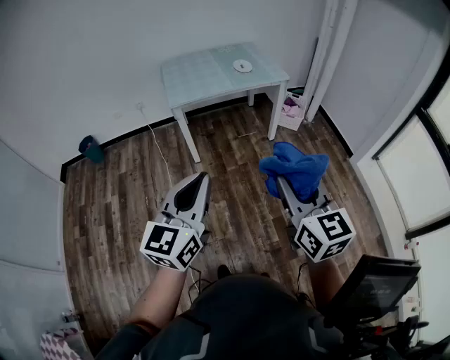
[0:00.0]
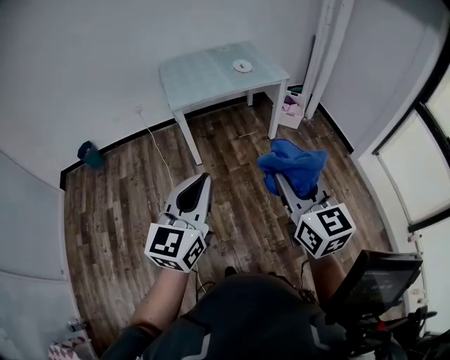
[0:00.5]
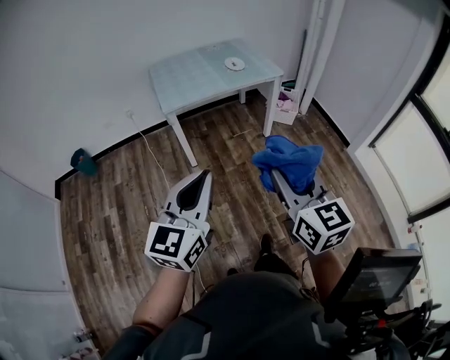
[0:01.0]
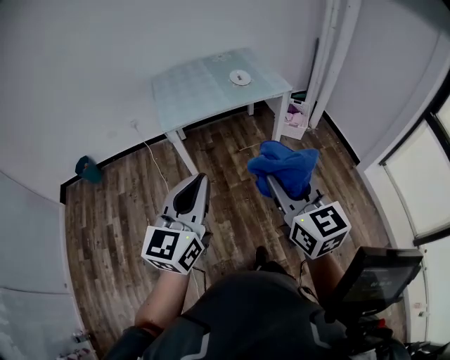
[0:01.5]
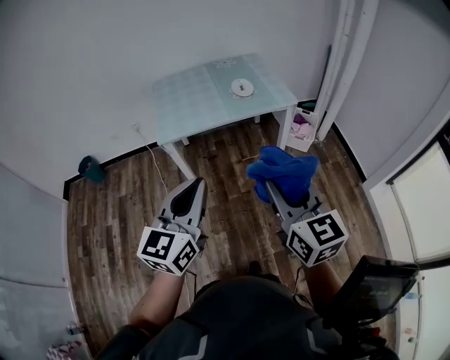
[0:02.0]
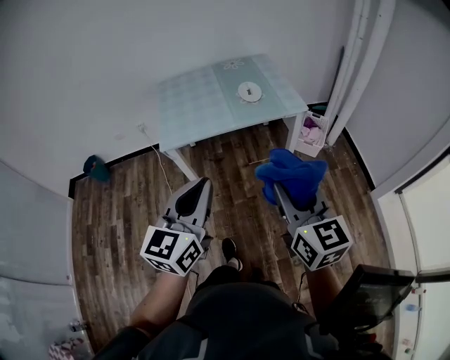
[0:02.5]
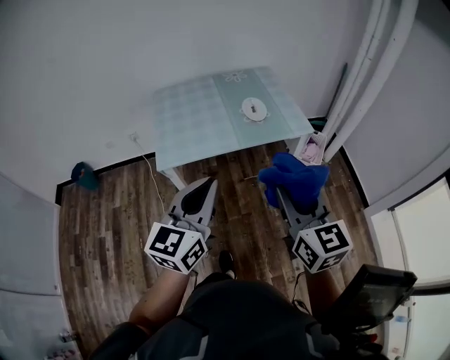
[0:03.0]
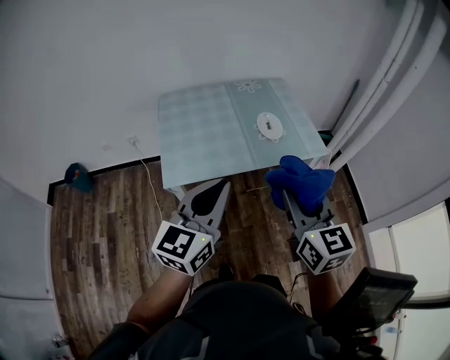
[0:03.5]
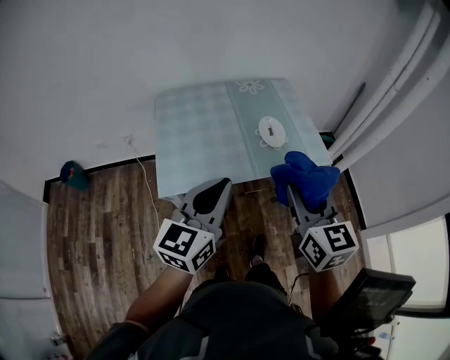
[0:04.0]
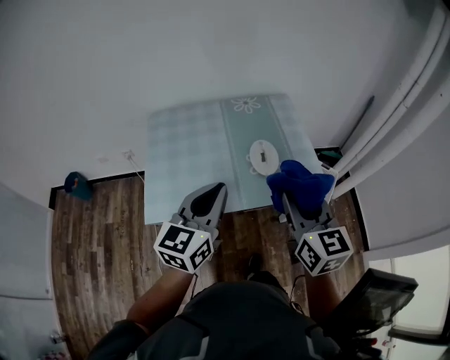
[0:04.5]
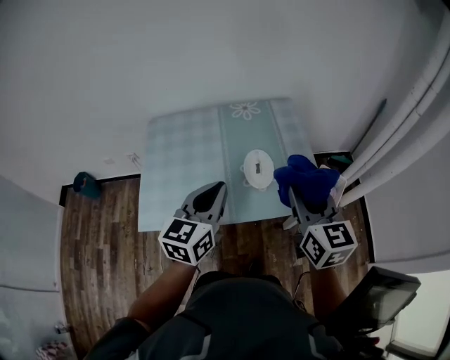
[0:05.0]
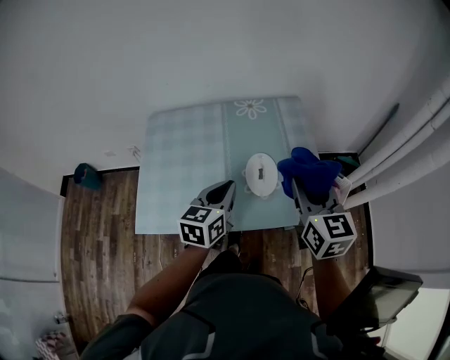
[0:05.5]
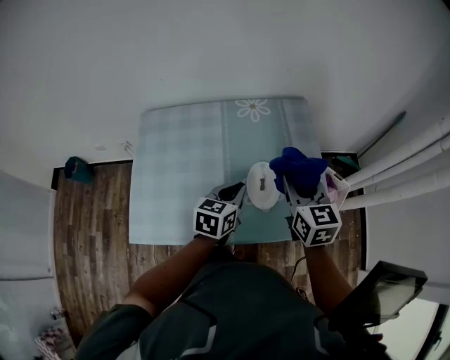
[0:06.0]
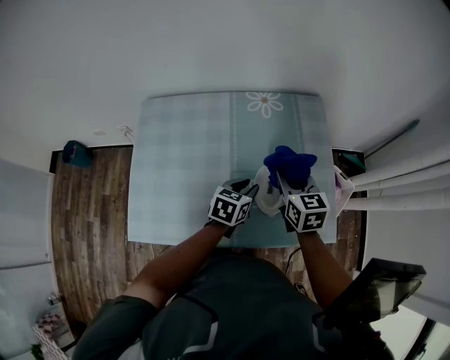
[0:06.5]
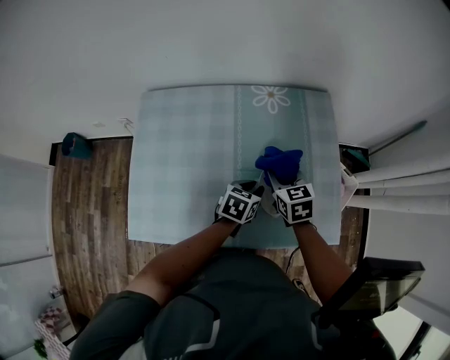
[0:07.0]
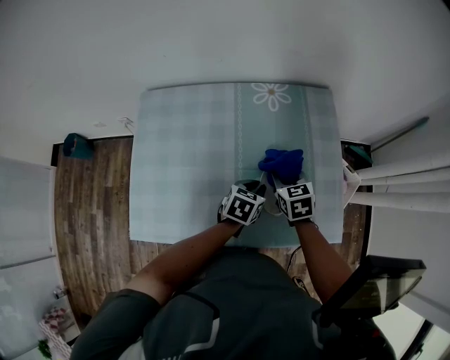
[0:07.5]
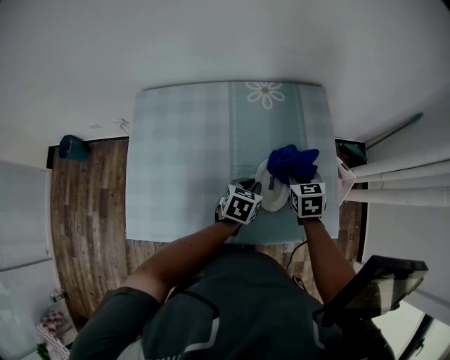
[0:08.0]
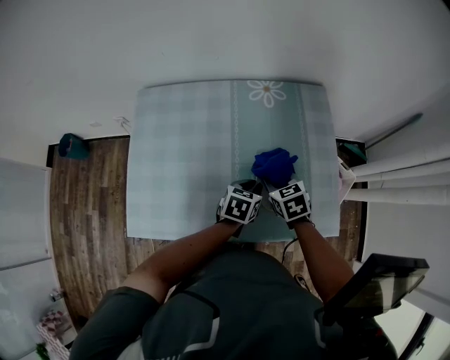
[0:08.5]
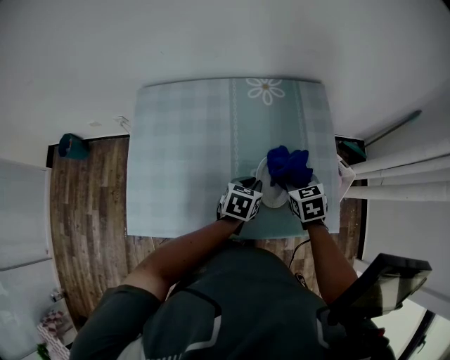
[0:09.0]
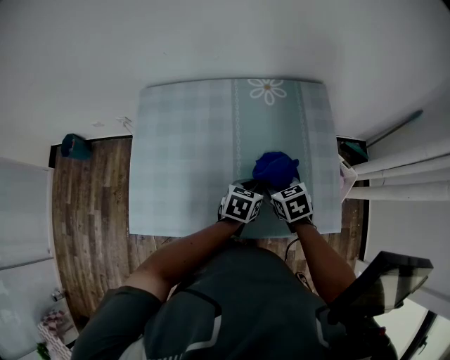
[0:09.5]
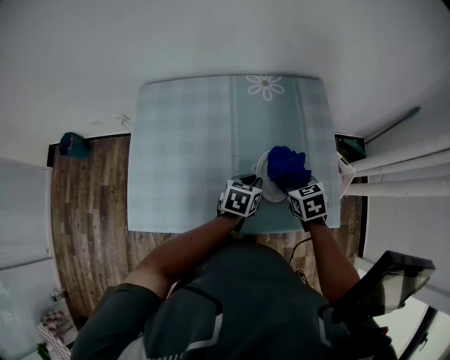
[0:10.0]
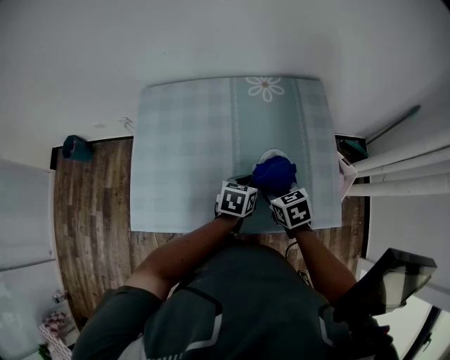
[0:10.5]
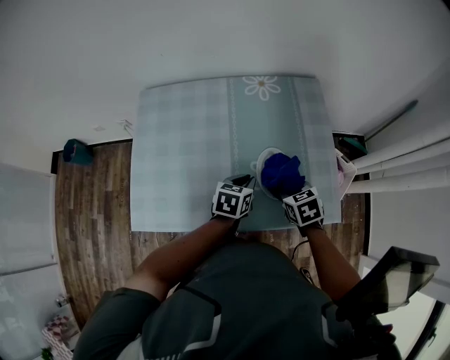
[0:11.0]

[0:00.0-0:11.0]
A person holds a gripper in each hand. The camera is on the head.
0:00.0 to 0:02.0: The two grippers go roughly 25 cm forward.
0:02.0 to 0:03.5: Both grippers travel together forward, roughly 30 cm.
0:03.5 to 0:05.5: The left gripper moves forward and downward, some 40 cm, and changes its angle by about 30 degrees; the right gripper is displaced forward by about 35 cm.
0:05.5 to 0:07.5: The right gripper goes approximately 30 cm downward, forward and to the left, and angles its fingers downward, by some 30 degrees; the left gripper is displaced downward and forward by some 25 cm, and changes its angle by some 30 degrees.
0:07.5 to 0:09.0: The right gripper moves left and right over about 10 cm, changing direction 2 times.
0:09.0 to 0:11.0: The right gripper moves left and right over approximately 5 cm, changing direction 3 times.

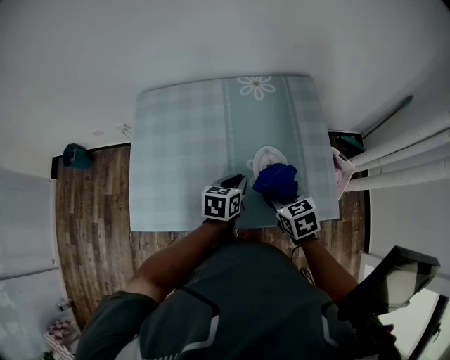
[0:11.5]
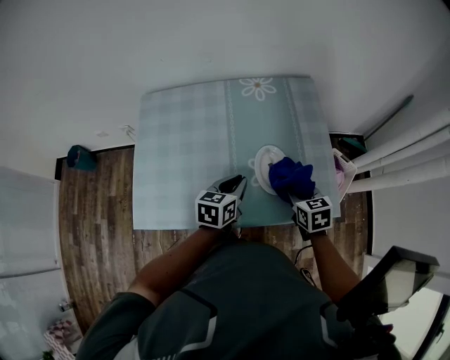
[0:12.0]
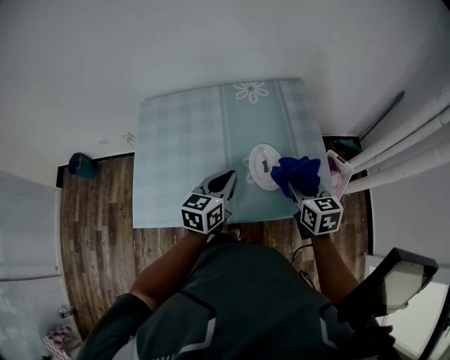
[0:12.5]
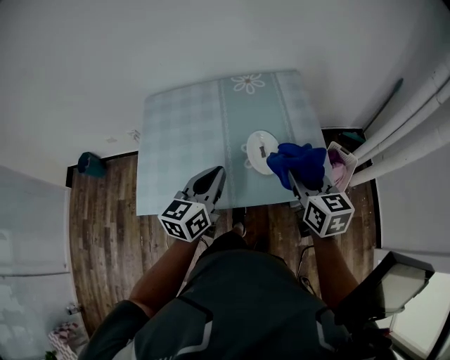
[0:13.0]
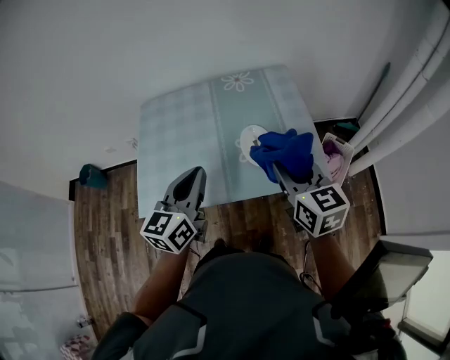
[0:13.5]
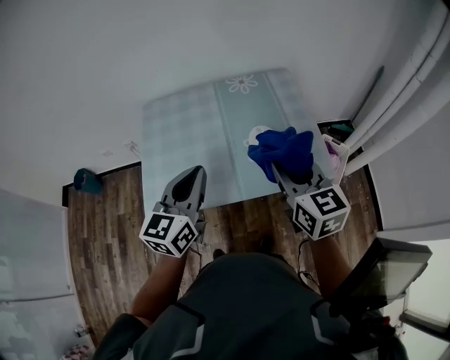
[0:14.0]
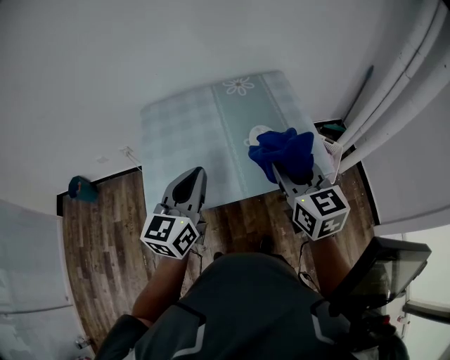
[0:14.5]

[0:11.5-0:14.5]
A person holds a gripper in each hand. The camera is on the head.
0:11.5 to 0:13.0: The left gripper heads upward and backward, covering some 20 cm, and changes its angle by roughly 30 degrees. Meanwhile the right gripper moves upward and to the right, about 15 cm, and swivels some 30 degrees.
0:13.0 to 0:14.5: The two grippers go roughly 15 cm to the left, upward and backward.

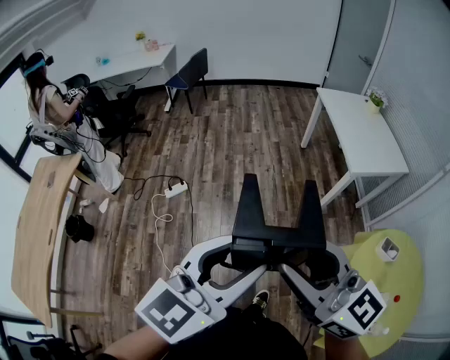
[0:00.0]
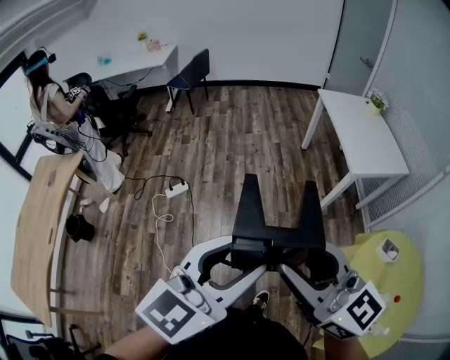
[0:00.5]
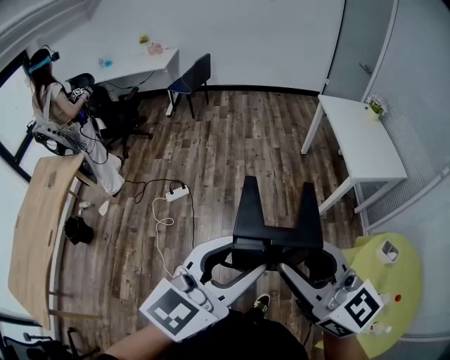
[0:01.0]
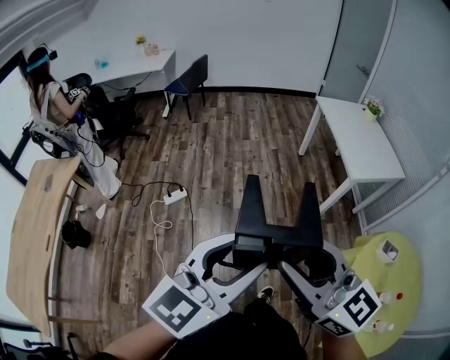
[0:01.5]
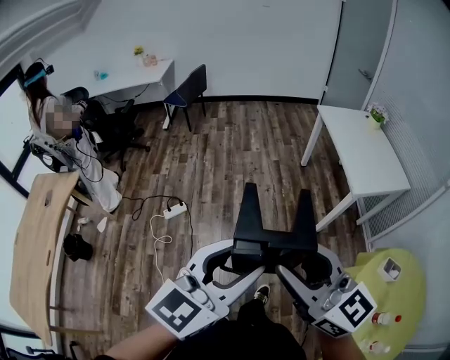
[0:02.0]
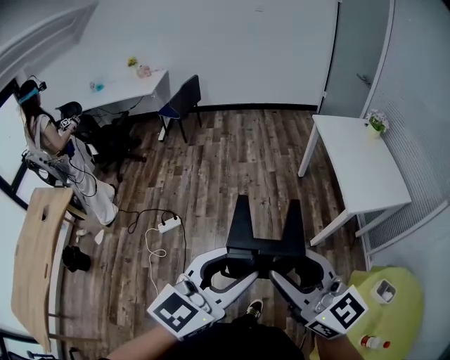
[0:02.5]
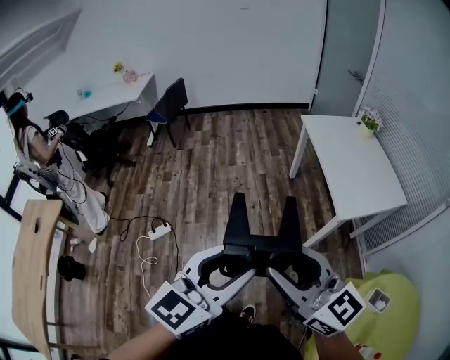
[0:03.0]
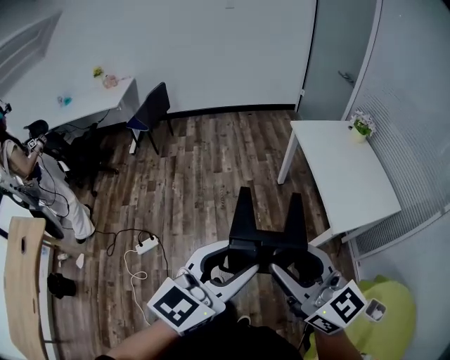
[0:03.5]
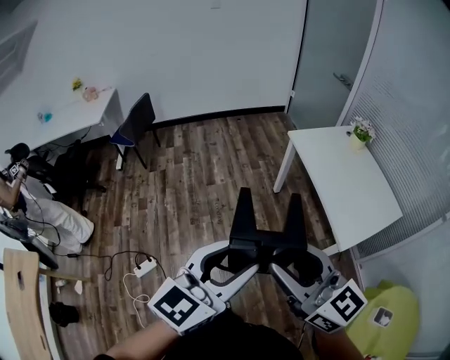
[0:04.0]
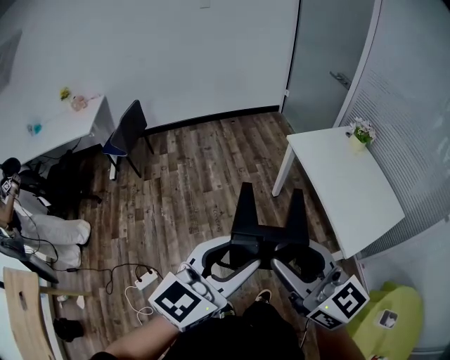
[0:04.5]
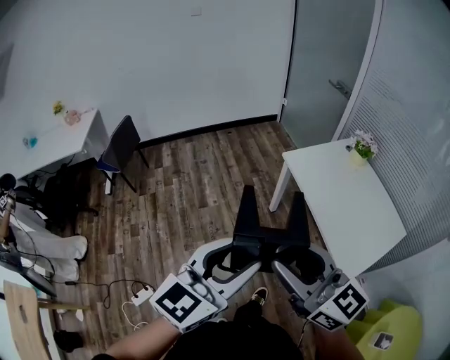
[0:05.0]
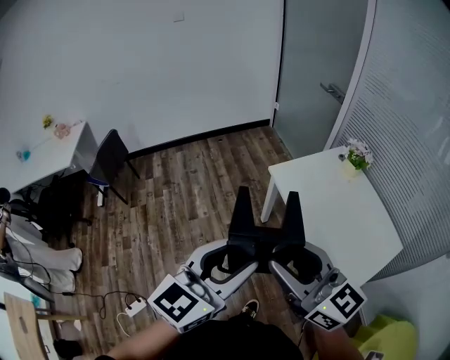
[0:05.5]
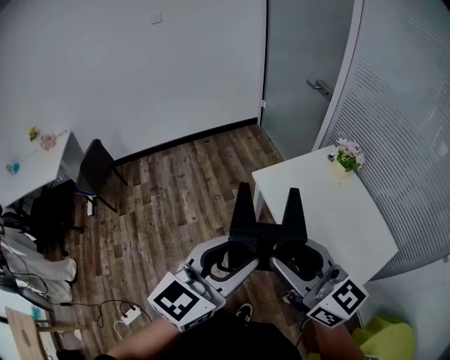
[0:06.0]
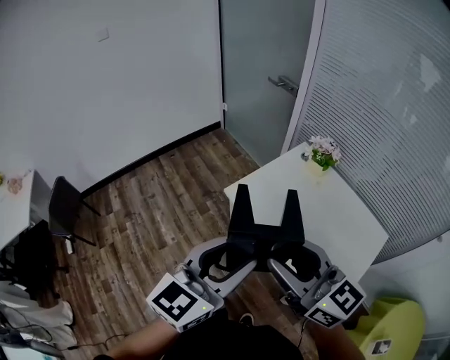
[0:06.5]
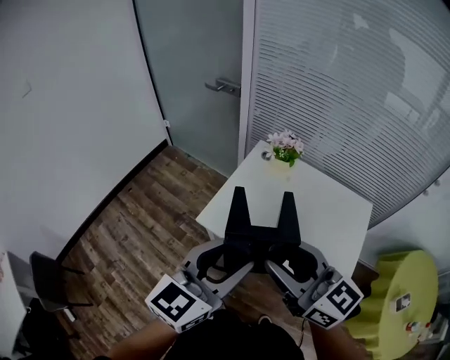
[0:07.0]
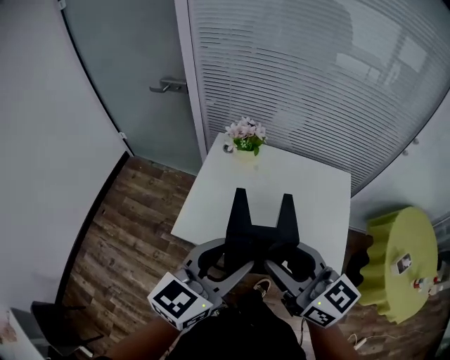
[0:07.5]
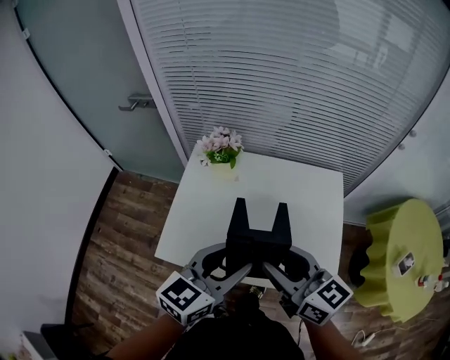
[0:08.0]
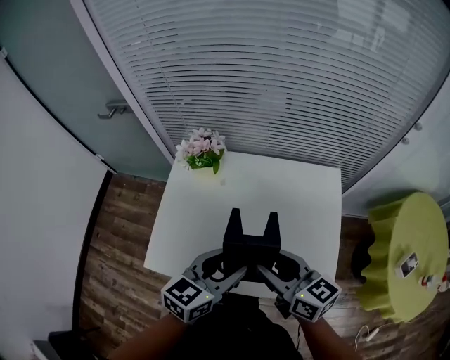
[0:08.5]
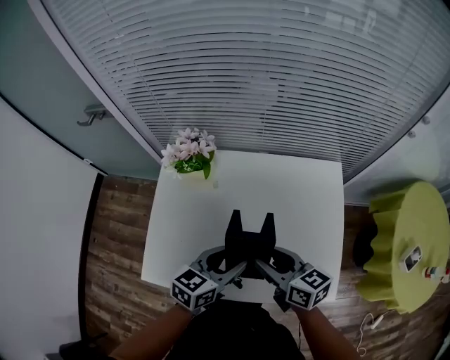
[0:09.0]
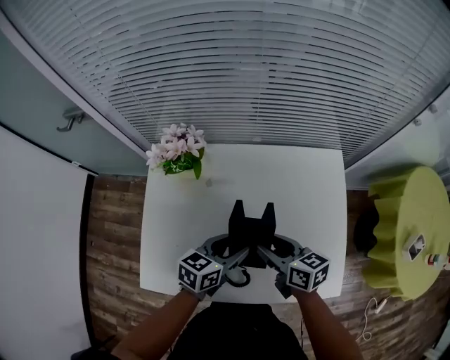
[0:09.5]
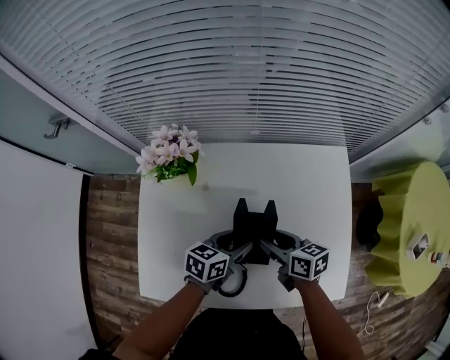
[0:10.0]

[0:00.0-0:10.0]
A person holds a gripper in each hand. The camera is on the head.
0:00.0 to 0:02.0: Both grippers travel together forward, approximately 10 cm.
0:02.0 to 0:04.0: The pair of grippers is taken forward, about 40 cm.
0:04.0 to 0:06.0: The left gripper is displaced forward by approximately 35 cm; the right gripper shifts approximately 40 cm forward and to the right.
0:06.0 to 0:08.0: The left gripper ends up roughly 35 cm from where it was, and turns by some 60 degrees; the right gripper moves roughly 30 cm, and swivels some 60 degrees.
0:08.0 to 0:10.0: Both grippers travel together downward and forward, about 35 cm. The left gripper rotates about 30 degrees. The right gripper turns by approximately 40 degrees.

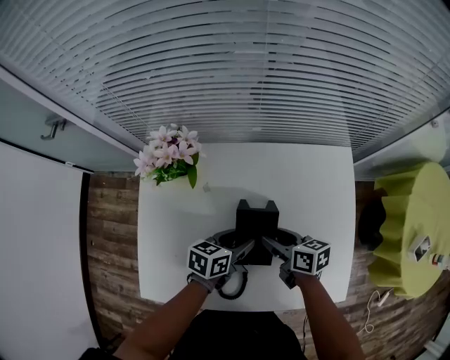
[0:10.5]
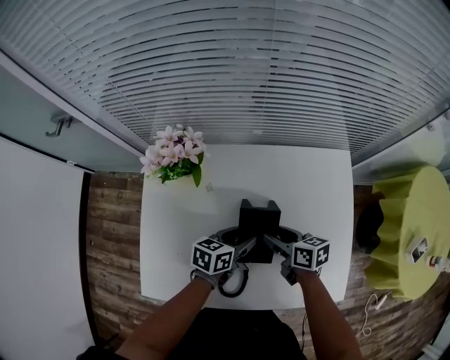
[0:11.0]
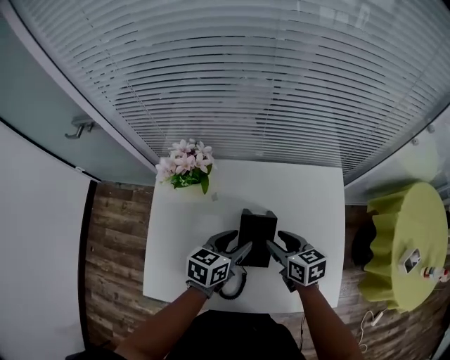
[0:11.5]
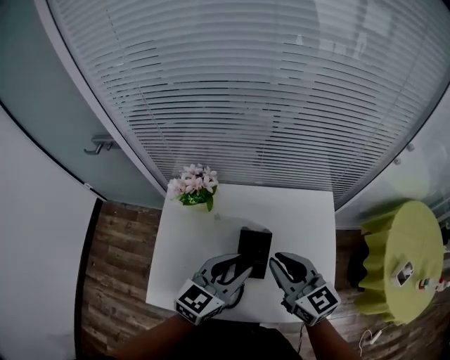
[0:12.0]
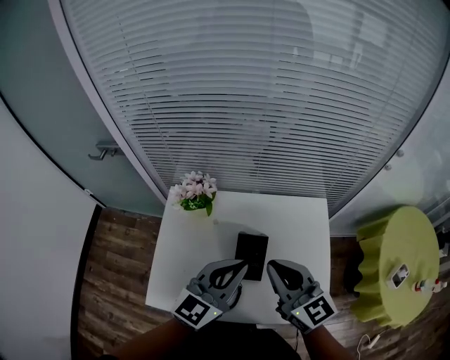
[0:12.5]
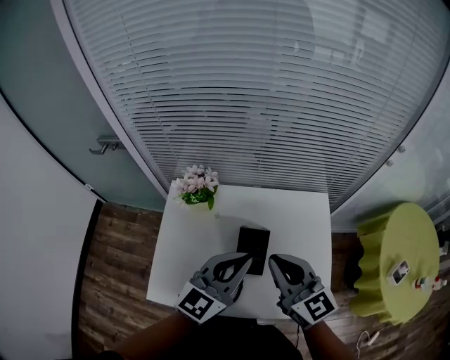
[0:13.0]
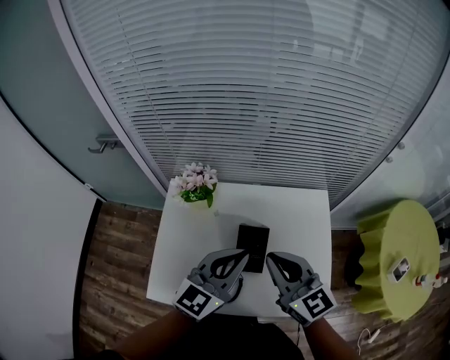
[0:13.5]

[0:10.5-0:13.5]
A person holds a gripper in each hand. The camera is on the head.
0:10.5 to 0:12.0: The grippers both shift upward by some 25 cm. The right gripper changes its angle by about 50 degrees, and closes its fingers; the left gripper changes its angle by about 40 degrees.
0:12.0 to 0:13.5: The right gripper shifts by some 5 cm; the left gripper moves upward, approximately 5 cm, and closes up.
